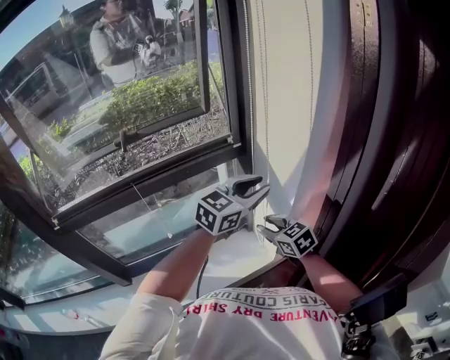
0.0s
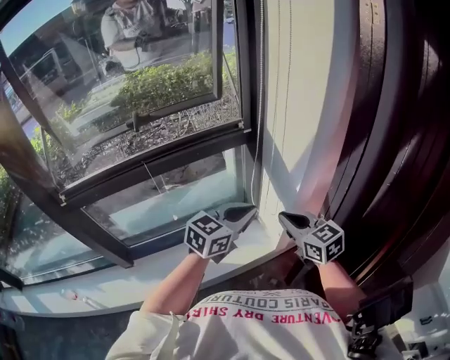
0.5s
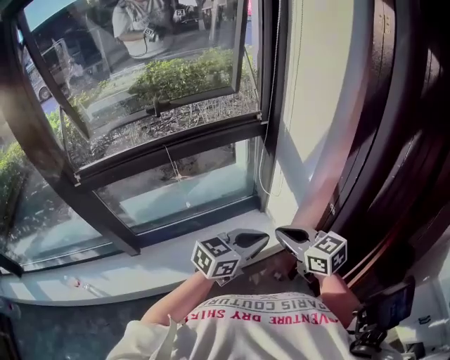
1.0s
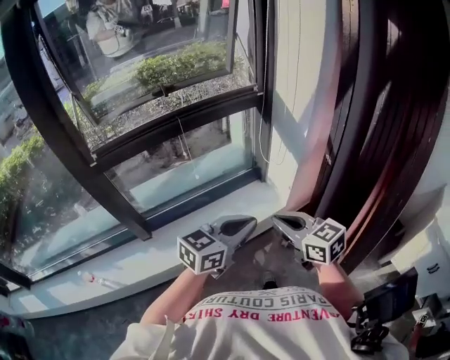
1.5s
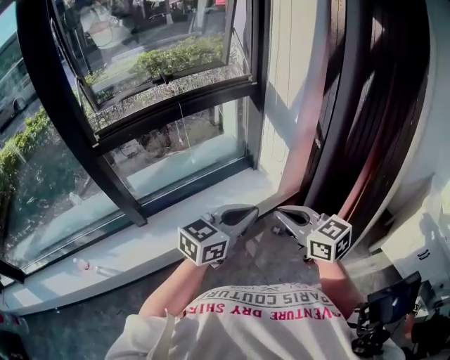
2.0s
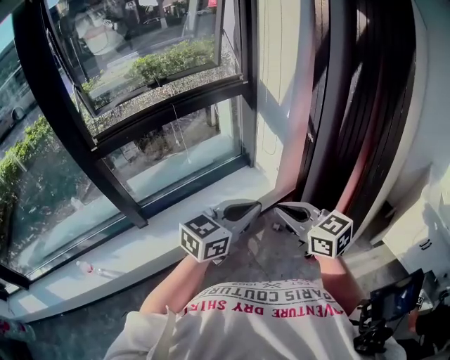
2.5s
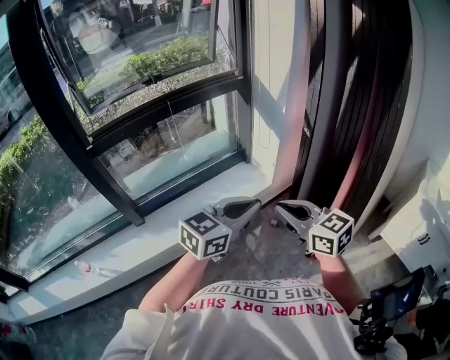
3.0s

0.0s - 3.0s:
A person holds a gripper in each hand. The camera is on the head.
0.0s - 1.5s: Both grippers move backward, roughly 35 cm. The left gripper closes up, while the right gripper closes.
1.5s - 3.0s: Both grippers travel together backward, approximately 10 cm.

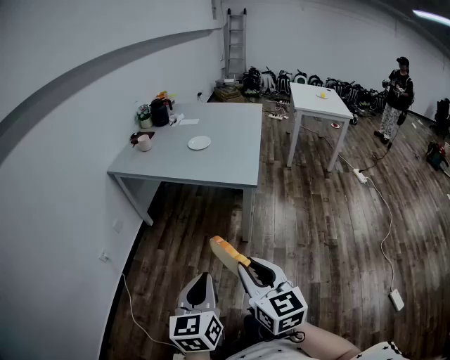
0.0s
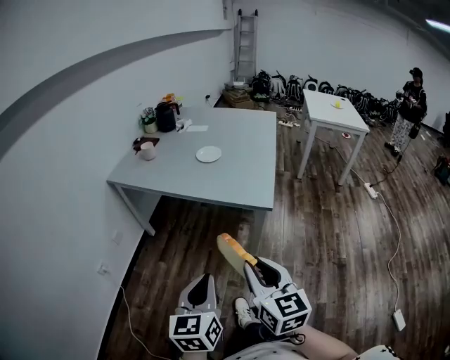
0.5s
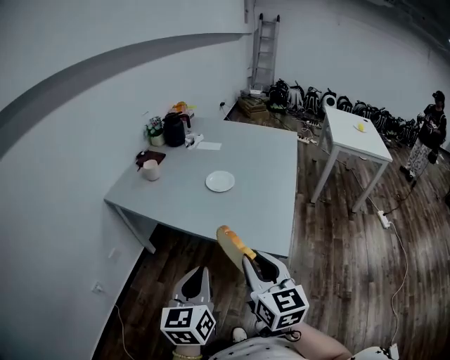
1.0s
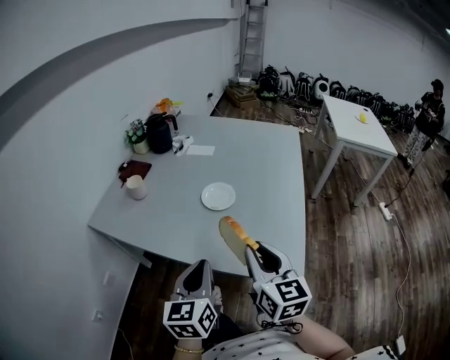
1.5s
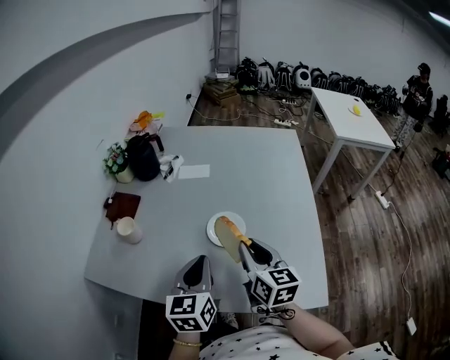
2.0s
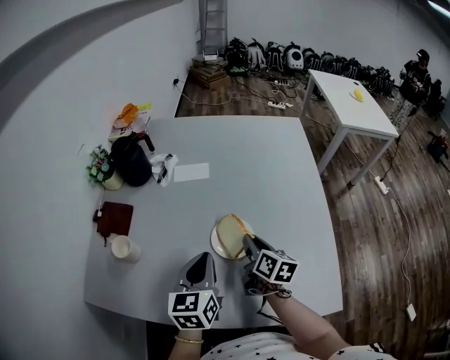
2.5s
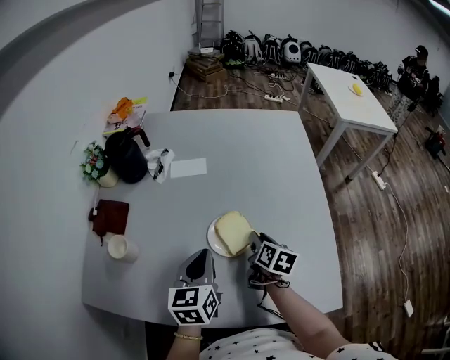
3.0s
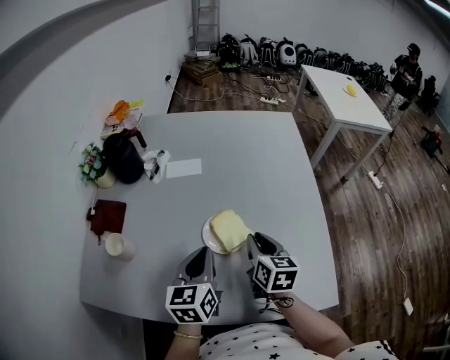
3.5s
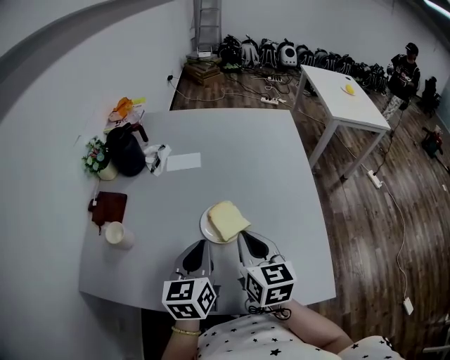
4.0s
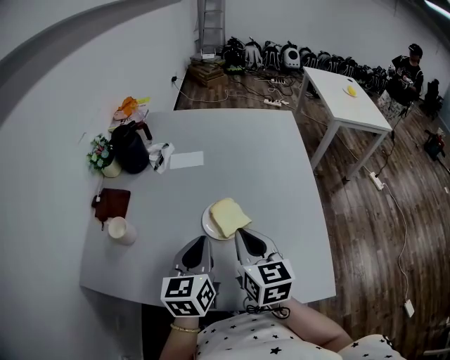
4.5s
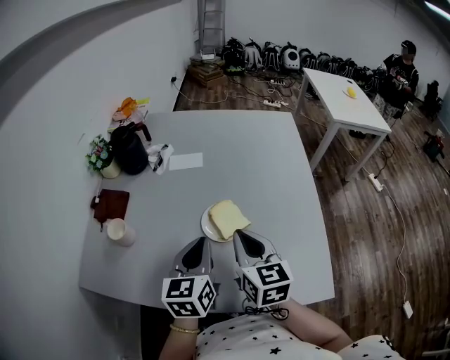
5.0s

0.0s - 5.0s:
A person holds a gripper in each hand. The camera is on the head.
0.0s - 2.5s: Both grippers are carried forward, about 90 cm. The right gripper changes its angle by about 40 degrees.
2.5s - 5.0s: The right gripper heads upward and backward, covering about 15 cm, and swivels some 30 degrees.

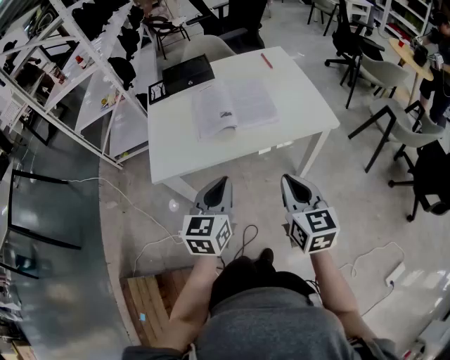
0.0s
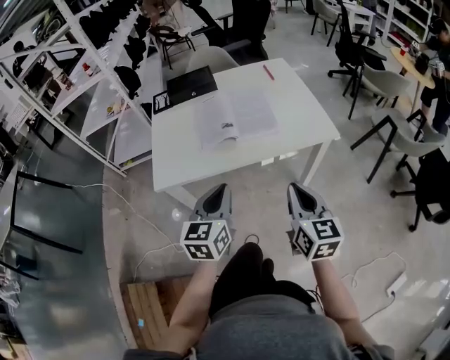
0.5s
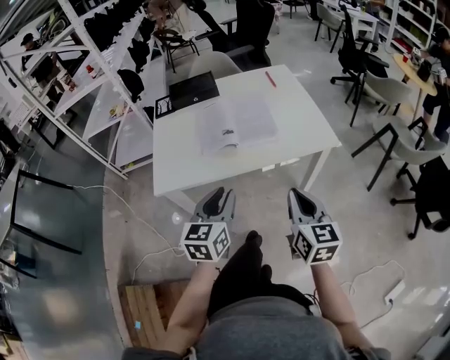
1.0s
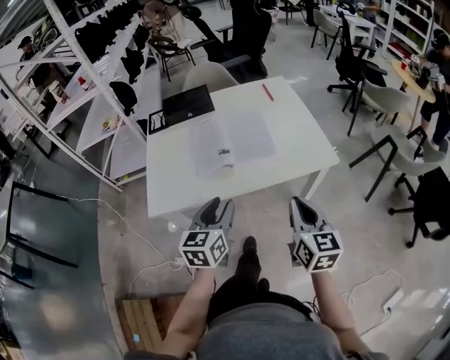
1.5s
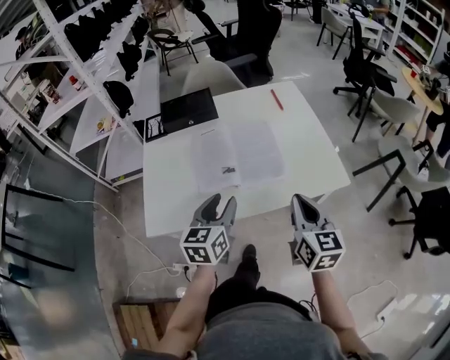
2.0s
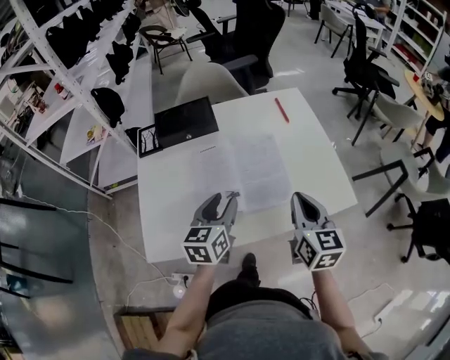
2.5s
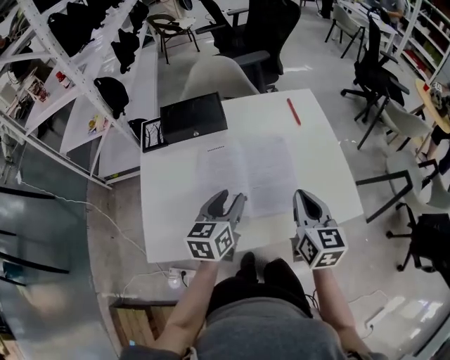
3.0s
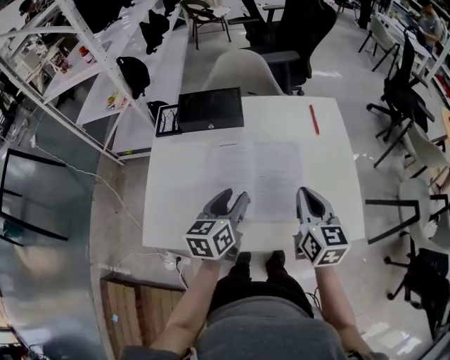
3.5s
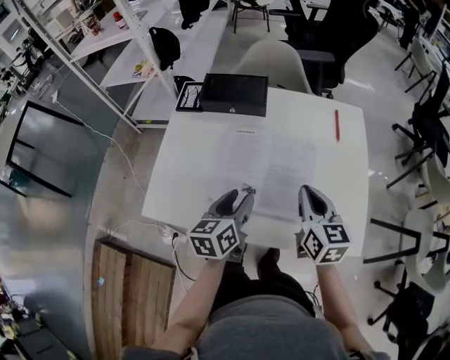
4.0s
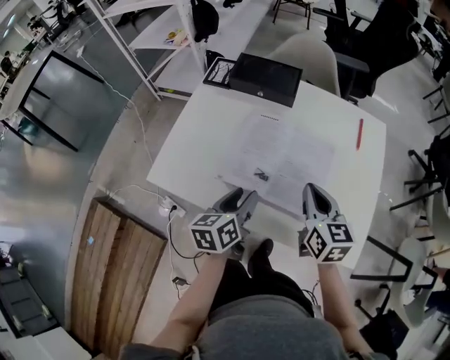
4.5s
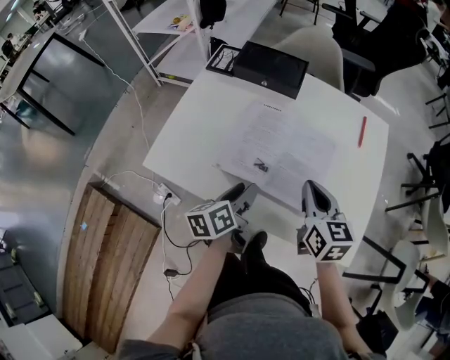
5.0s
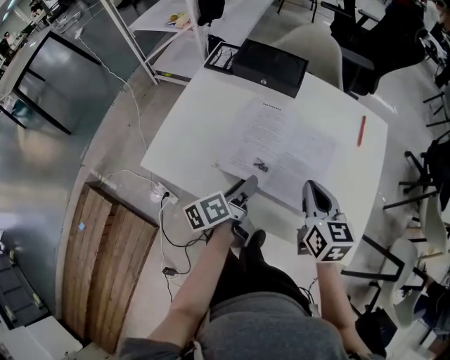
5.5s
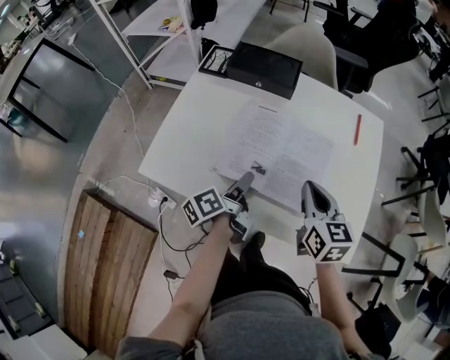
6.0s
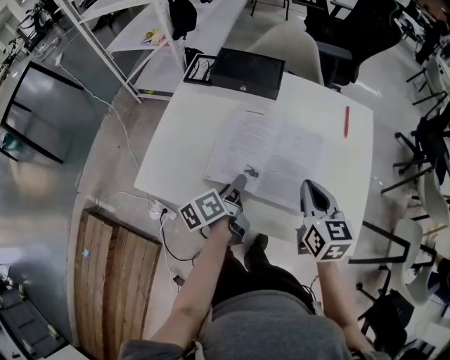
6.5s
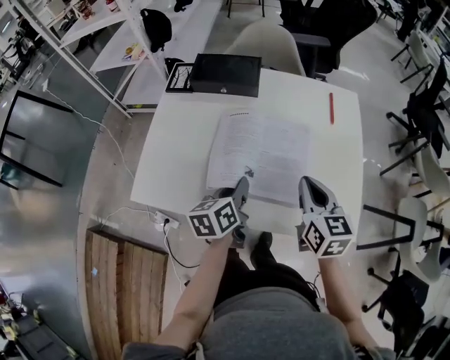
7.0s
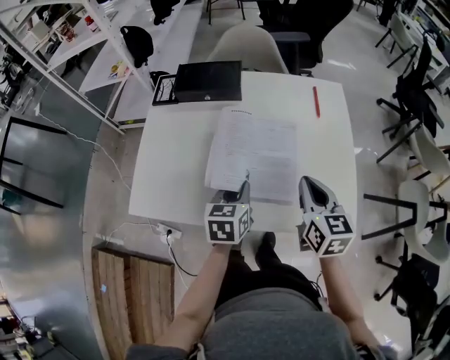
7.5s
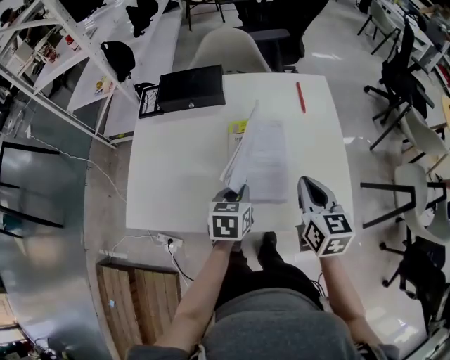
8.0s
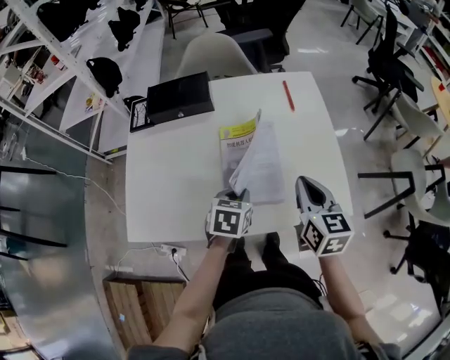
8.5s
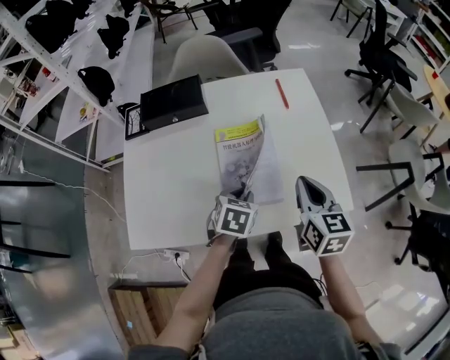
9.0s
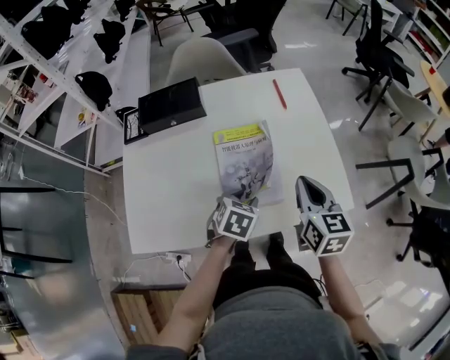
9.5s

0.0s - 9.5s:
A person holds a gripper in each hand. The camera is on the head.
0.0s - 2.0s: Both grippers move forward, about 15 cm. The left gripper opens.
2.0s - 4.0s: The left gripper is displaced forward by some 10 cm, and swivels roughly 30 degrees. Meanwhile the right gripper travels forward by approximately 20 cm, and turns by roughly 20 degrees.
4.0s - 5.5s: The left gripper shifts about 5 cm downward, and twists some 40 degrees counterclockwise, seen from behind.
5.5s - 7.5s: Both grippers move to the right, some 5 cm. The left gripper rotates around the line of its fingers by roughly 50 degrees, clockwise from behind, and closes its fingers.
7.5s - 9.5s: The left gripper shifts approximately 5 cm to the right, changes its angle by about 40 degrees, and opens its fingers.

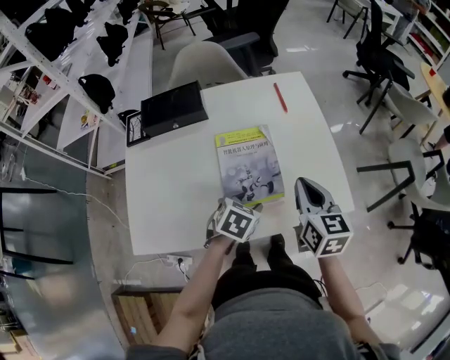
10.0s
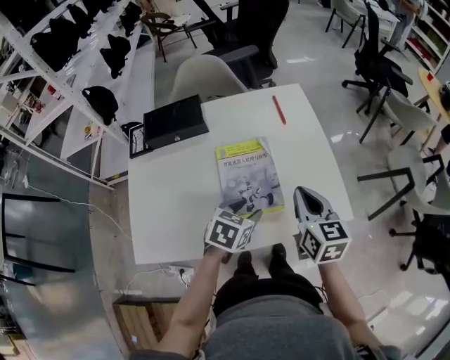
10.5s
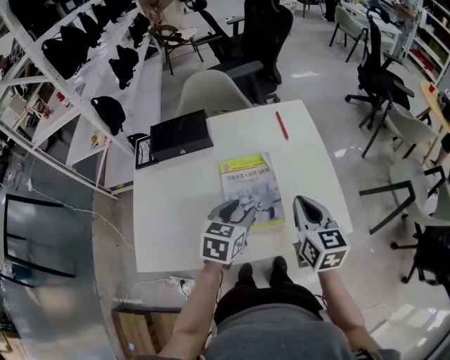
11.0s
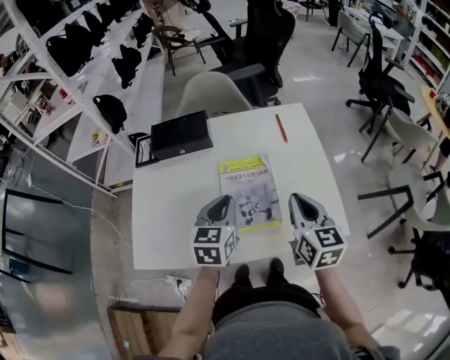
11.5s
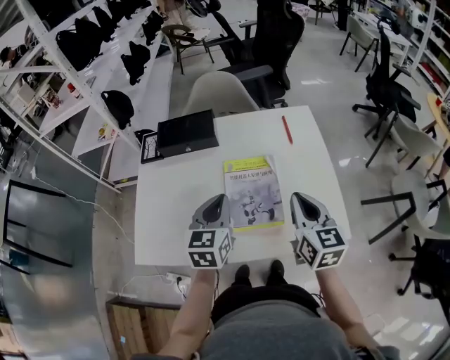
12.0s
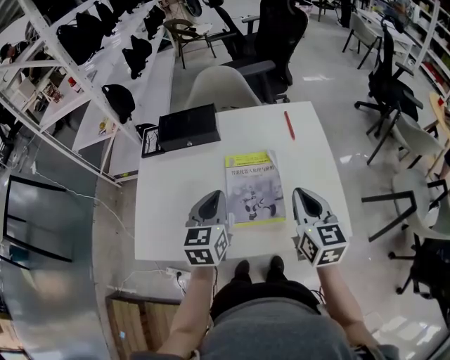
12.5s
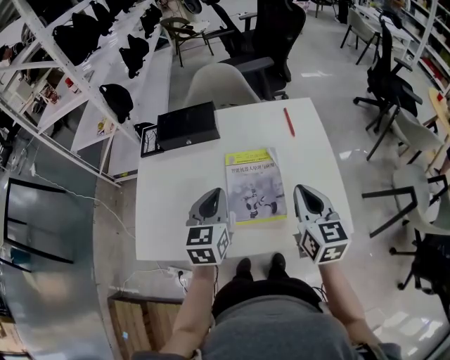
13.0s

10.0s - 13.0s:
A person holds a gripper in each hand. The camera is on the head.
10.0s - 11.5s: The left gripper travels upward and to the left by some 15 cm, tilts its fingers about 30 degrees upward, and closes up.
11.5s - 13.0s: The grippers move only a little.

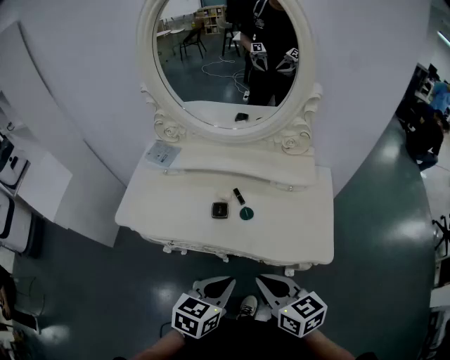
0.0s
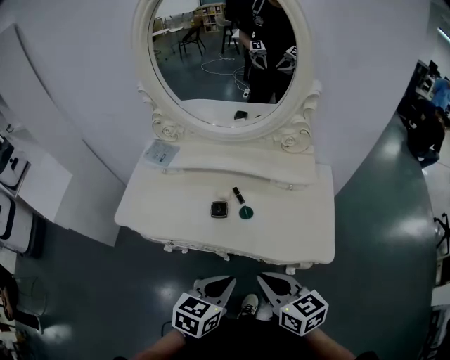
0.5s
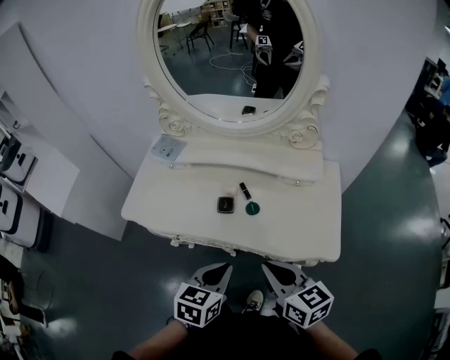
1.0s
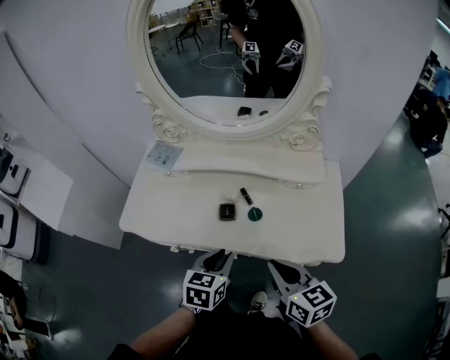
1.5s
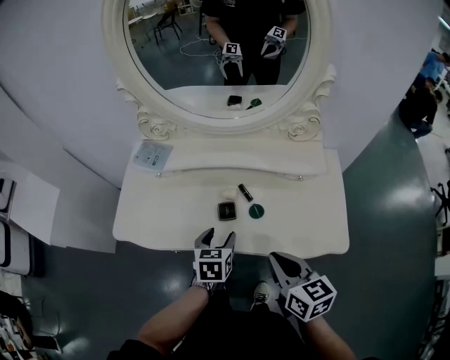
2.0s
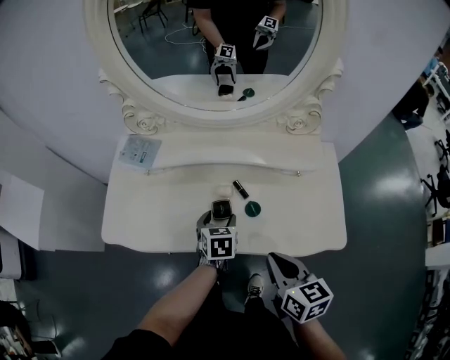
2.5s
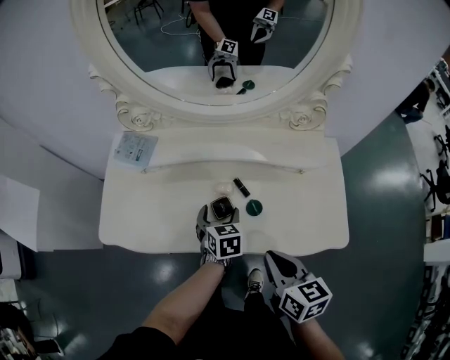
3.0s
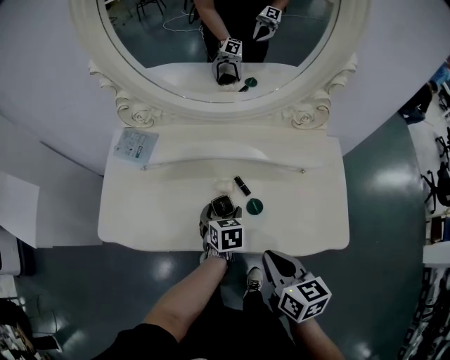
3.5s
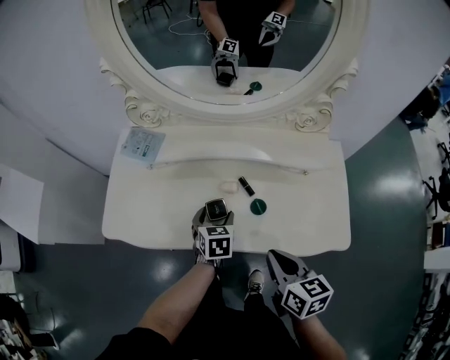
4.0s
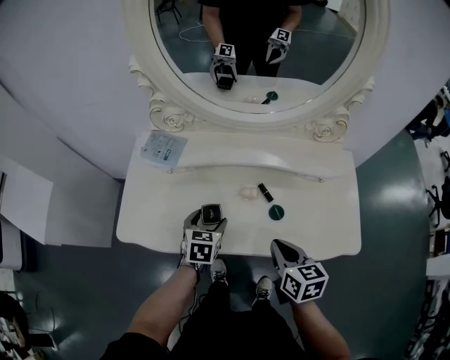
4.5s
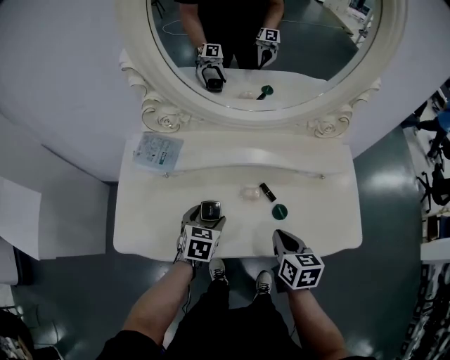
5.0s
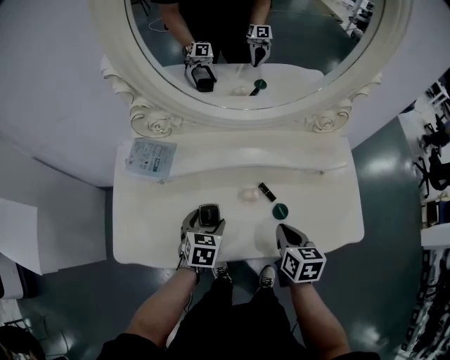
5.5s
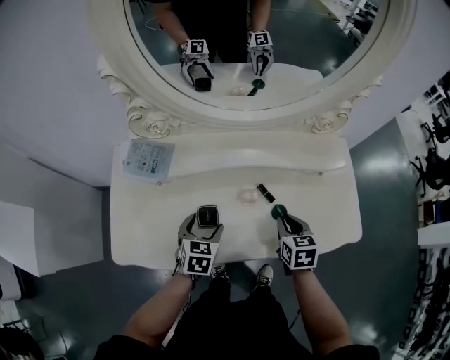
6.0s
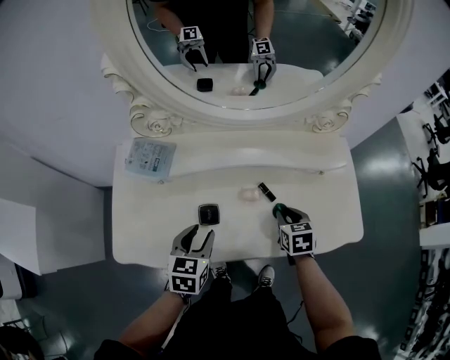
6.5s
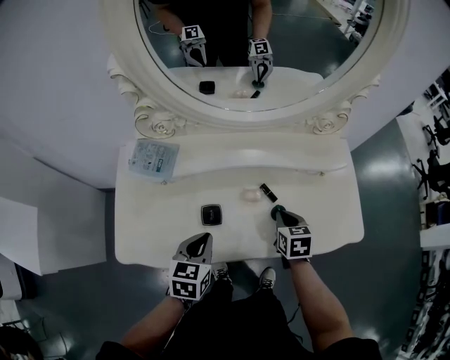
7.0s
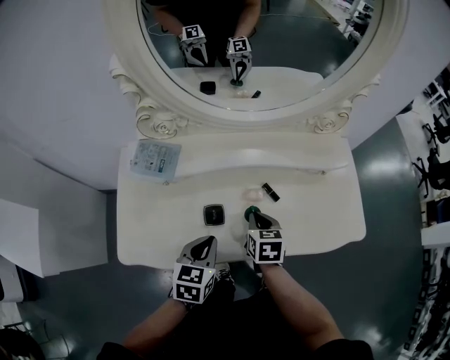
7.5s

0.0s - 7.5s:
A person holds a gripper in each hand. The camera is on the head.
0.0s - 2.0s: The left gripper moves forward and downward, some 20 cm, and opens its fingers. Meanwhile the right gripper heads forward, covering approximately 10 cm.
2.0s - 4.0s: The left gripper heads forward and downward, covering roughly 10 cm.
4.0s - 5.5s: The left gripper is displaced to the left by about 10 cm, while the right gripper shifts approximately 10 cm forward and downward.
5.5s - 7.5s: The right gripper heads to the left, covering about 10 cm. The left gripper moves upward and backward, roughly 10 cm, and closes.
